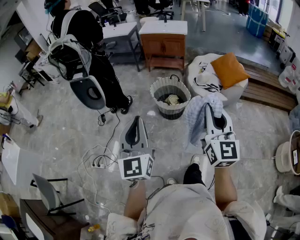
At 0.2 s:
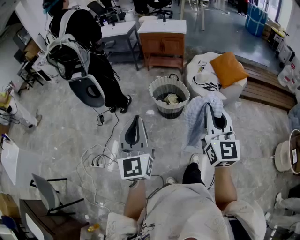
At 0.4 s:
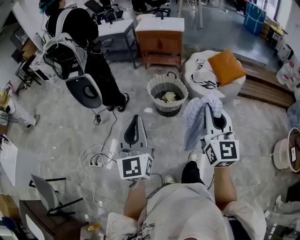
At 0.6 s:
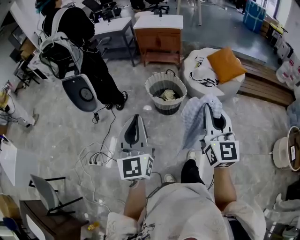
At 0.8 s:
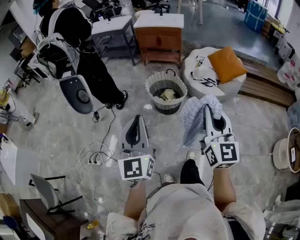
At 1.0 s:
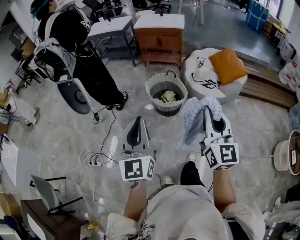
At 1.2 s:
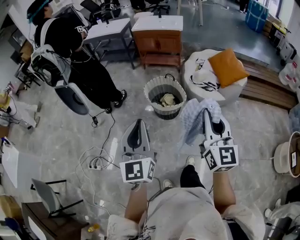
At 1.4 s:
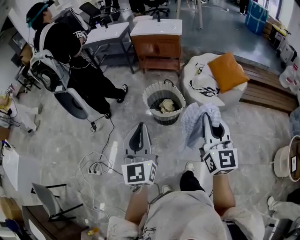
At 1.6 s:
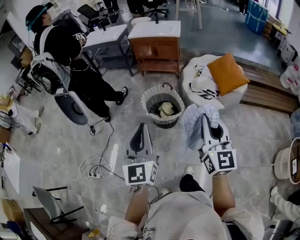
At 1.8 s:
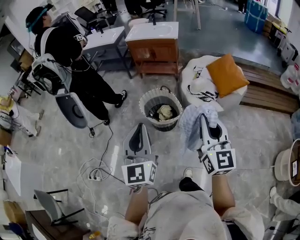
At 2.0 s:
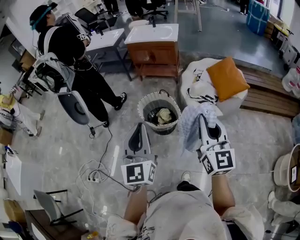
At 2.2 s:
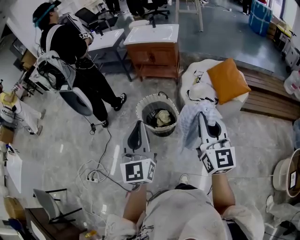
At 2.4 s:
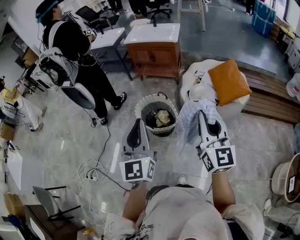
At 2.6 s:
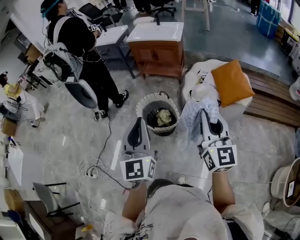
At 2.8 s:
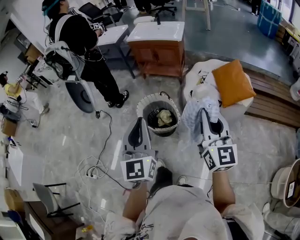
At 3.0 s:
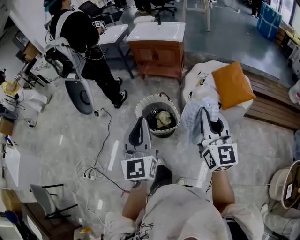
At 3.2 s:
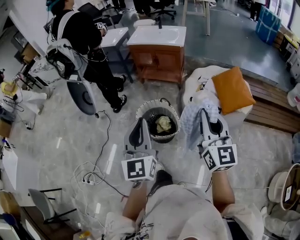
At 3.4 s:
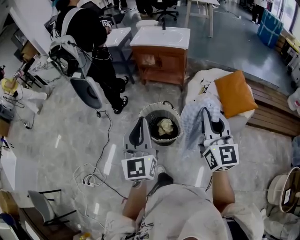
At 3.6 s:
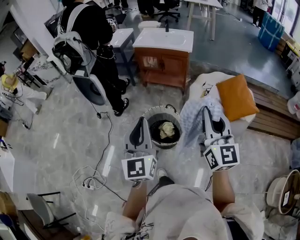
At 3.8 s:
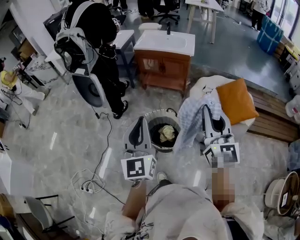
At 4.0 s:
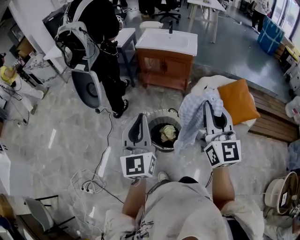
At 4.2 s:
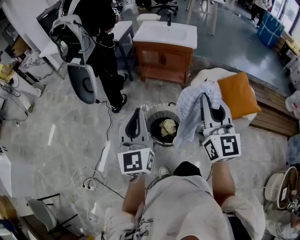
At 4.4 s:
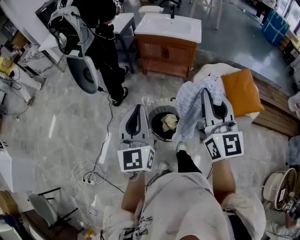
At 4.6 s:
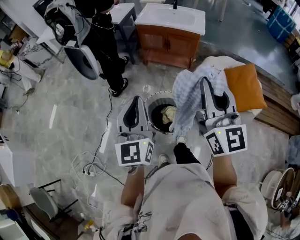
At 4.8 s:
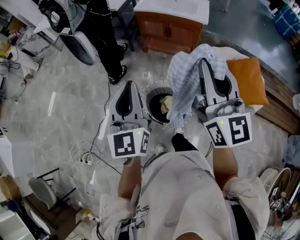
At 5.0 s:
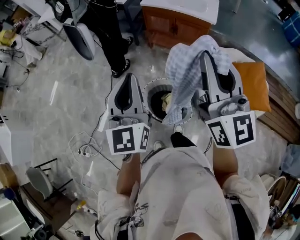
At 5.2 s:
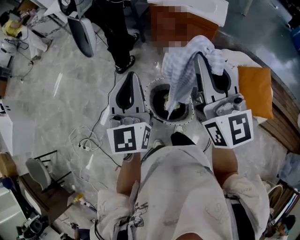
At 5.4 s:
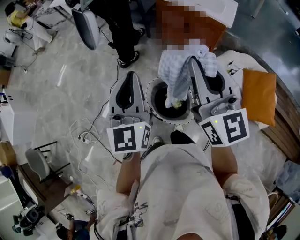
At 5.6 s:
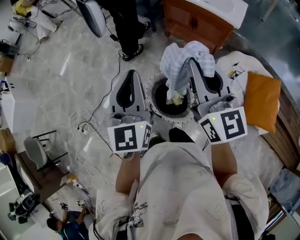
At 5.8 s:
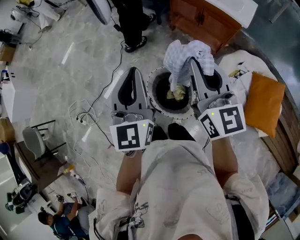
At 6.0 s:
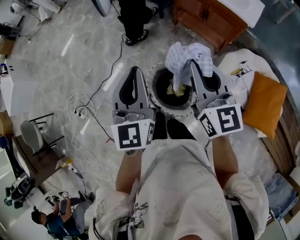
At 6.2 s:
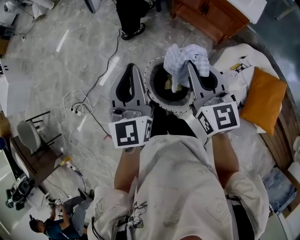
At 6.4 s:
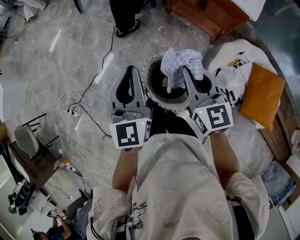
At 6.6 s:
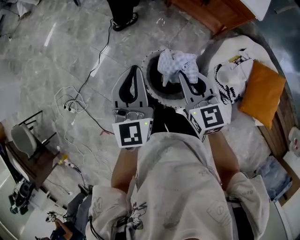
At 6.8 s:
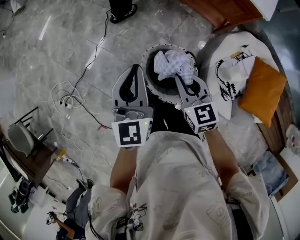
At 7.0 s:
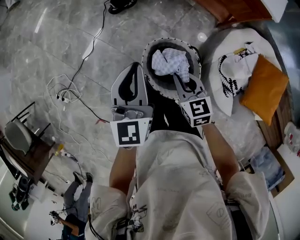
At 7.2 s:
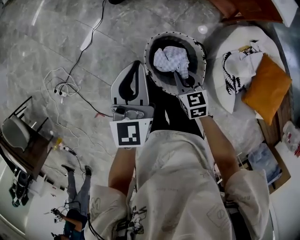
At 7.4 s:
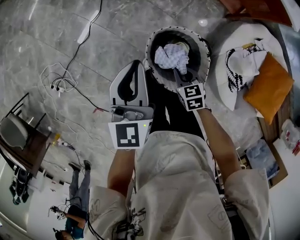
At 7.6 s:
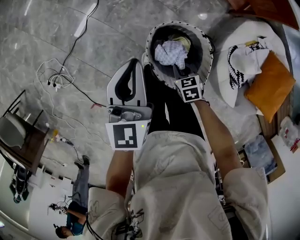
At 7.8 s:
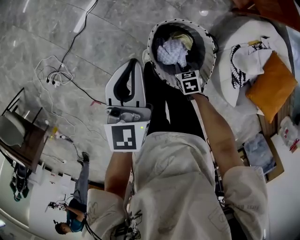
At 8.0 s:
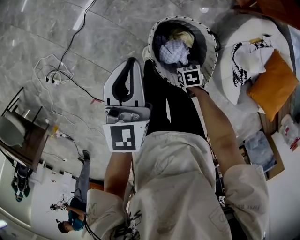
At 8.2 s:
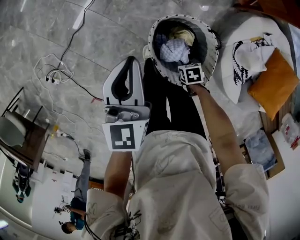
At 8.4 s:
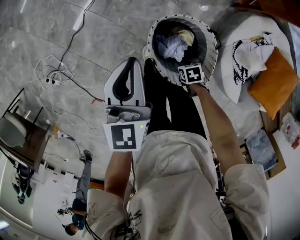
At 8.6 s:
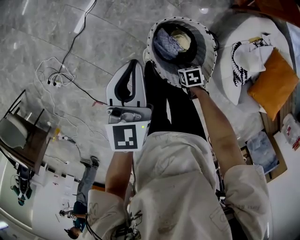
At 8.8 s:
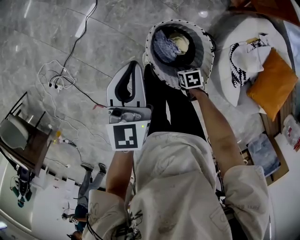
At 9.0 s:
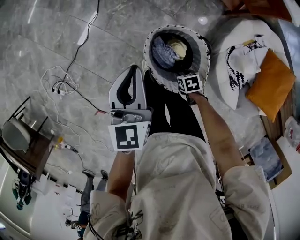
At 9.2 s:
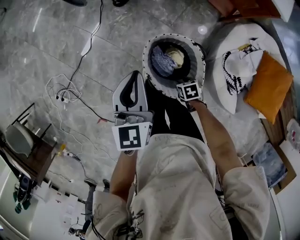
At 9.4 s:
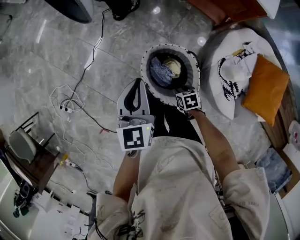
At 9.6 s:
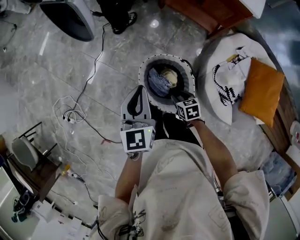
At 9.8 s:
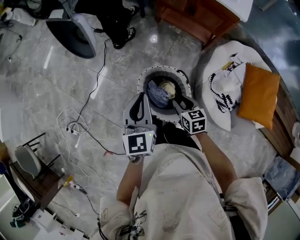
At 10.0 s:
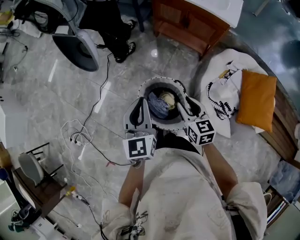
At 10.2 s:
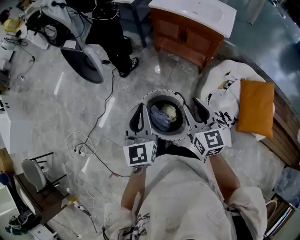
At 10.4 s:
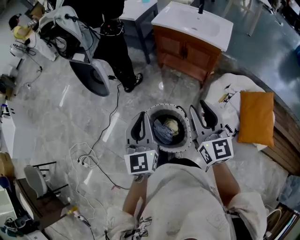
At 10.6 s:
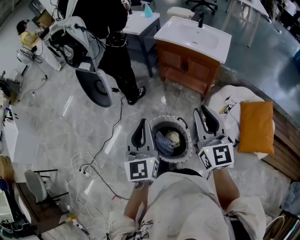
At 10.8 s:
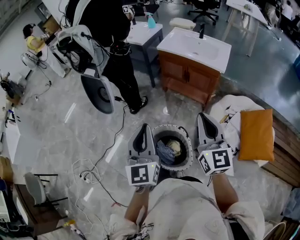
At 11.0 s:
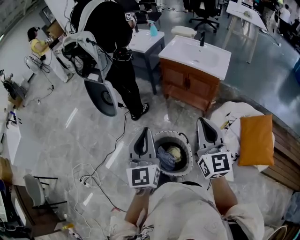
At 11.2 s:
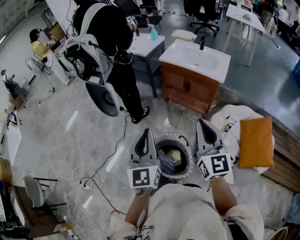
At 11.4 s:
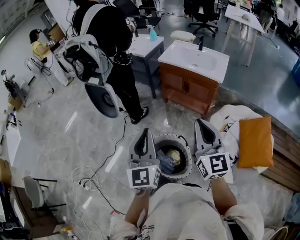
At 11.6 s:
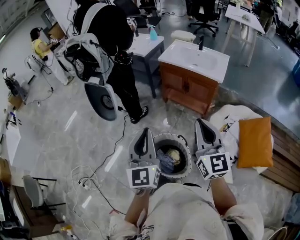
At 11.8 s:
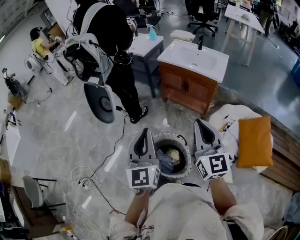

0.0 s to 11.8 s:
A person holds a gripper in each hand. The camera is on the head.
0.0 to 1.4 s: The grippers both shift forward and to the right by about 15 cm.
1.4 to 3.0 s: Both grippers travel together forward and to the right, roughly 25 cm.
3.0 to 4.4 s: Both grippers travel together forward and to the left, some 30 cm.
4.4 to 6.0 s: The right gripper moves approximately 25 cm, and turns by about 40 degrees, while the left gripper changes place by roughly 15 cm, and swivels some 20 degrees.
6.0 to 7.4 s: The right gripper moves downward, about 50 cm, and points its fingers roughly 50 degrees further downward. The left gripper is displaced downward and forward by roughly 25 cm, and rotates roughly 20 degrees.
7.4 to 8.8 s: The right gripper is displaced downward by approximately 15 cm, turns by about 30 degrees, and opens up.
8.8 to 10.4 s: The left gripper shifts some 25 cm upward, and rotates roughly 20 degrees. Meanwhile the right gripper moves upward, some 60 cm, and angles its fingers upward, by about 70 degrees.
10.4 to 11.8 s: The grippers both shift upward by some 10 cm. The right gripper closes its fingers.

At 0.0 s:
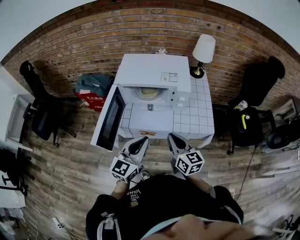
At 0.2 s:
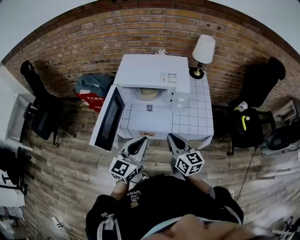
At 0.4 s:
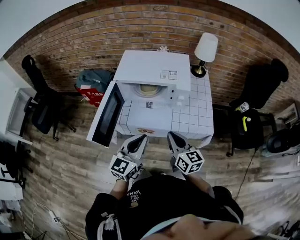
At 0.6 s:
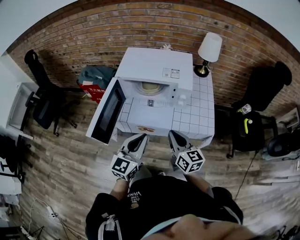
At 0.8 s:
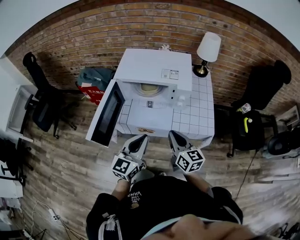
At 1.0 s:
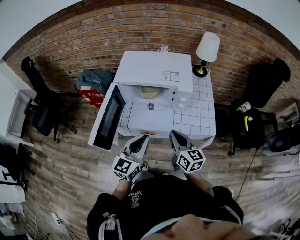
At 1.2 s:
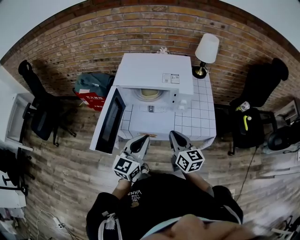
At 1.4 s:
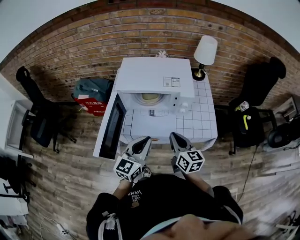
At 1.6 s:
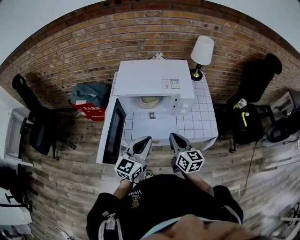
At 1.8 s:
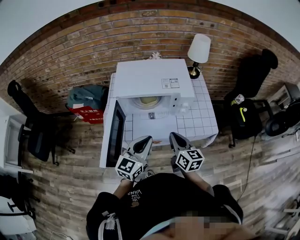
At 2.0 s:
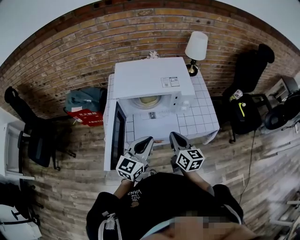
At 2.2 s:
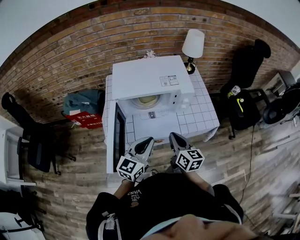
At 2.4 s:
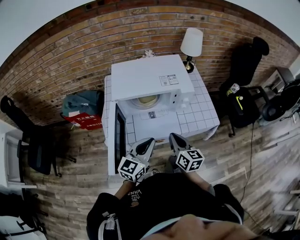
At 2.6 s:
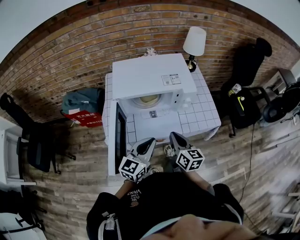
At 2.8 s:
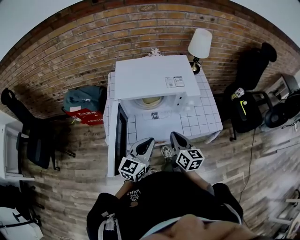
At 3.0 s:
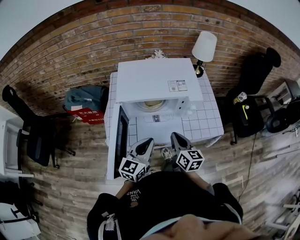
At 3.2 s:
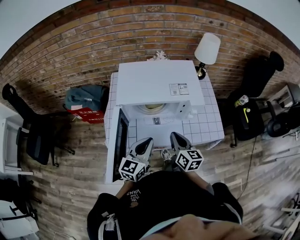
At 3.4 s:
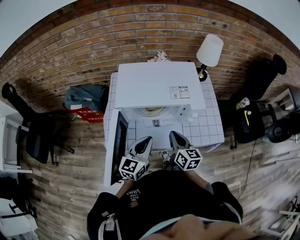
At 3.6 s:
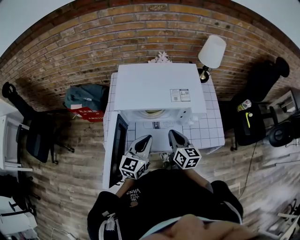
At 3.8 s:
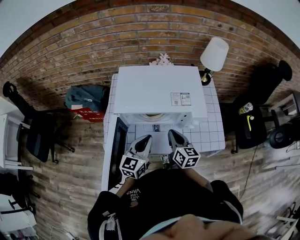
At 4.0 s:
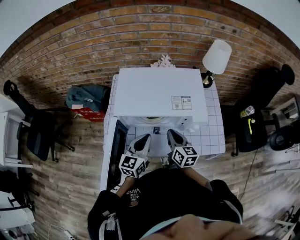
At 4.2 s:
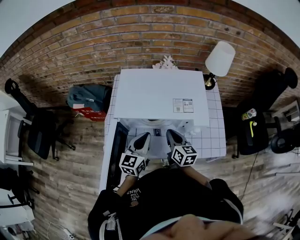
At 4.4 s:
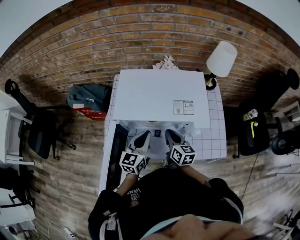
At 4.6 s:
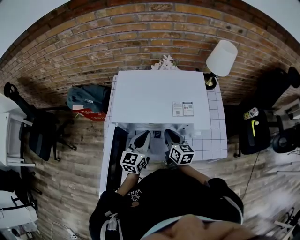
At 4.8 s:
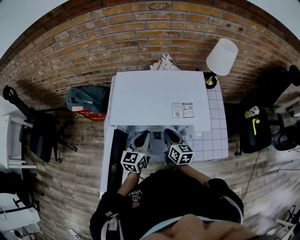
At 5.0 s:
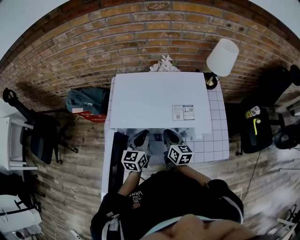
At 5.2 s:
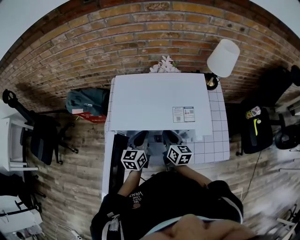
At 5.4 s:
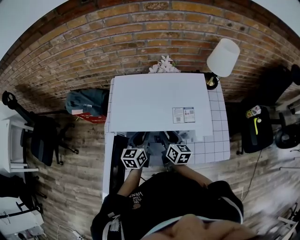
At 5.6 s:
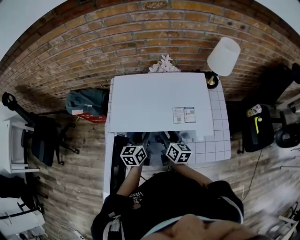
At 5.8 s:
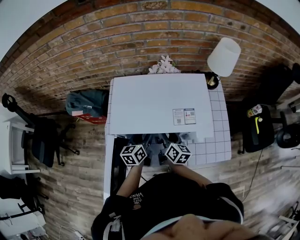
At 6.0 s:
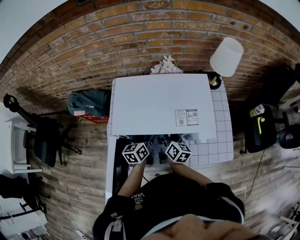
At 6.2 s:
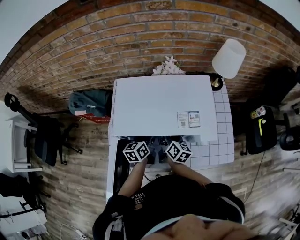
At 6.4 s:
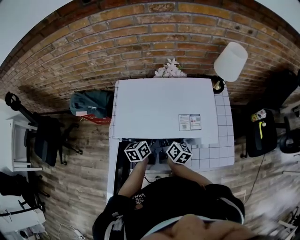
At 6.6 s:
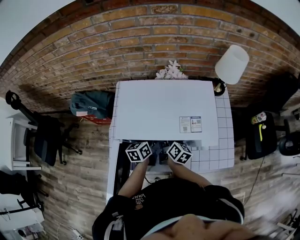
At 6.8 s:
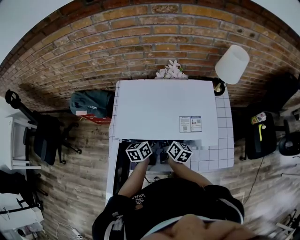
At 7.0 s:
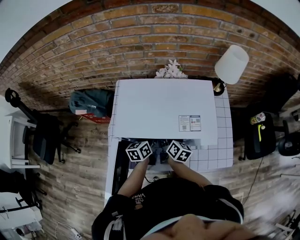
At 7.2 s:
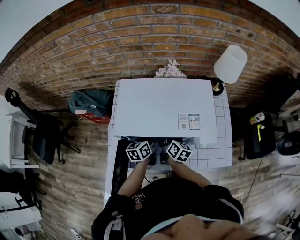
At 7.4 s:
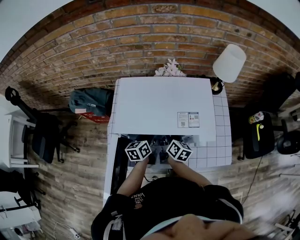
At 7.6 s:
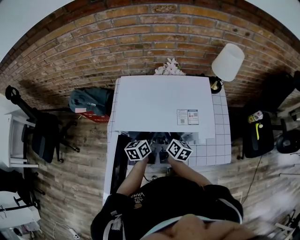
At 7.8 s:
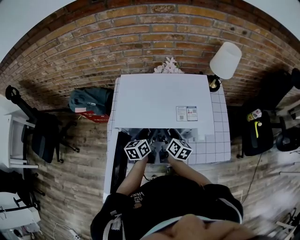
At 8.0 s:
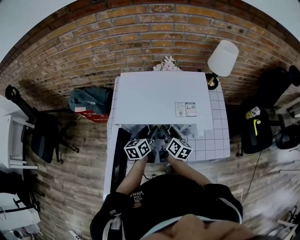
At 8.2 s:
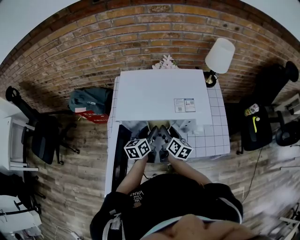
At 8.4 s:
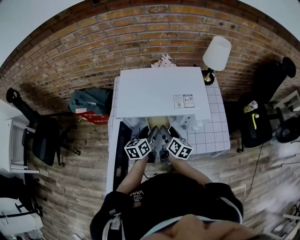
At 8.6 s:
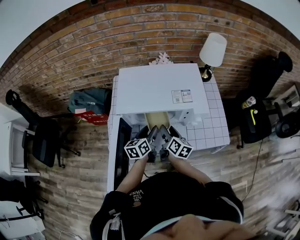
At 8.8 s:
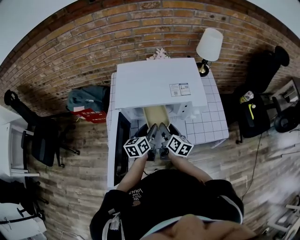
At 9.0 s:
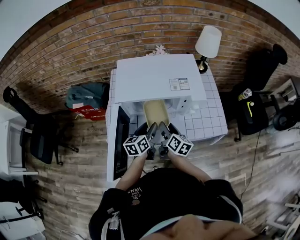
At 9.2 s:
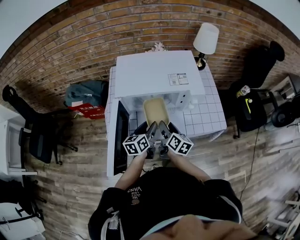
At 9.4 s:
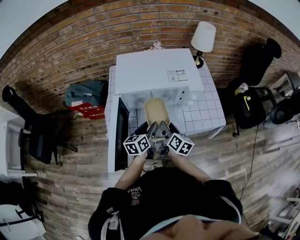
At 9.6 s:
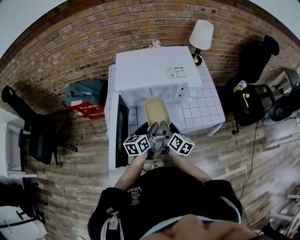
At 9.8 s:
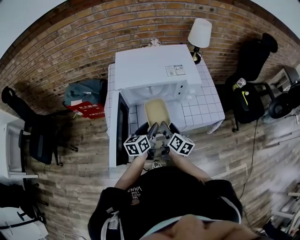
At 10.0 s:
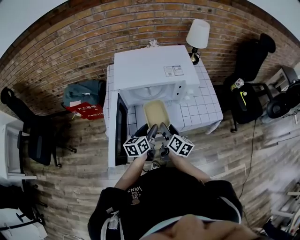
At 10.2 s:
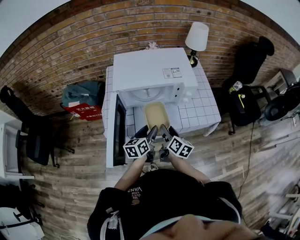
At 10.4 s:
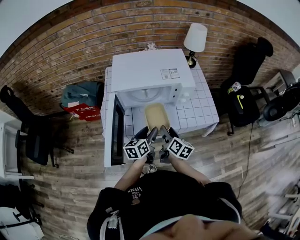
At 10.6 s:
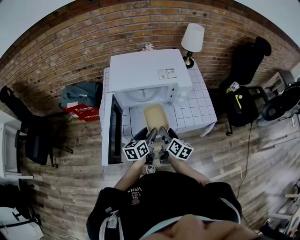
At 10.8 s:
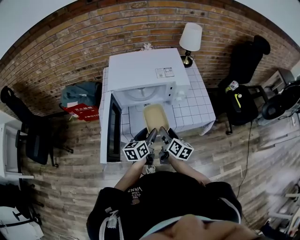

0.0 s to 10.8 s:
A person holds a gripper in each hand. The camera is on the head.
0.0 to 1.6 s: The grippers both shift forward by approximately 5 cm.
1.6 to 3.0 s: The right gripper moves some 5 cm. The left gripper shifts roughly 5 cm to the left.
3.0 to 4.6 s: The left gripper heads forward, covering about 15 cm. The right gripper heads forward and downward, covering some 15 cm.
4.6 to 6.2 s: The left gripper heads forward and downward, covering about 10 cm, changes its angle by roughly 30 degrees, and opens. The right gripper goes some 5 cm forward, swivels some 20 degrees, and opens.
6.2 to 7.8 s: The grippers stay close to where they were, moving slightly.
7.8 to 9.2 s: Both grippers move backward, approximately 15 cm.
9.2 to 10.8 s: The two grippers go about 10 cm backward and to the right.

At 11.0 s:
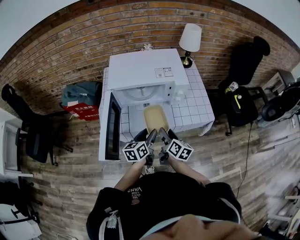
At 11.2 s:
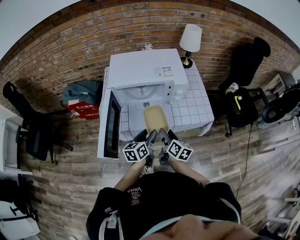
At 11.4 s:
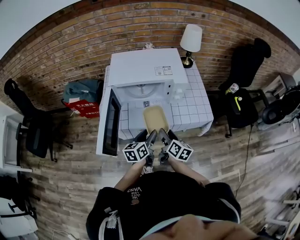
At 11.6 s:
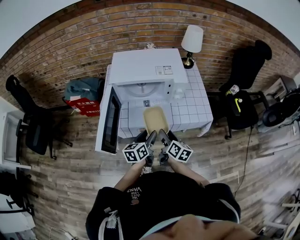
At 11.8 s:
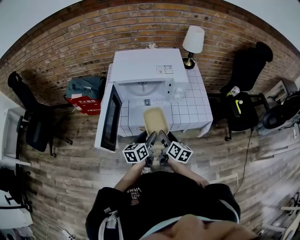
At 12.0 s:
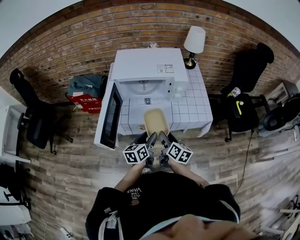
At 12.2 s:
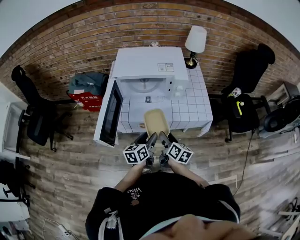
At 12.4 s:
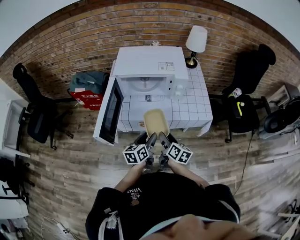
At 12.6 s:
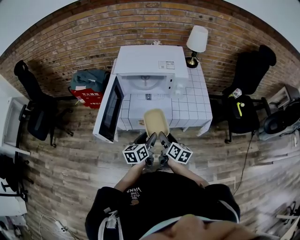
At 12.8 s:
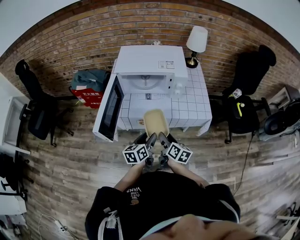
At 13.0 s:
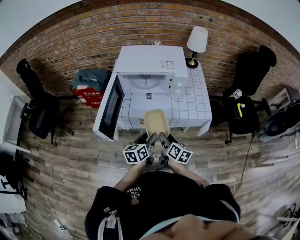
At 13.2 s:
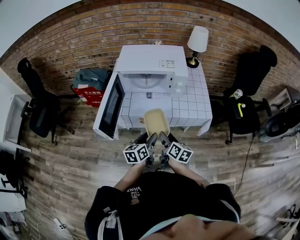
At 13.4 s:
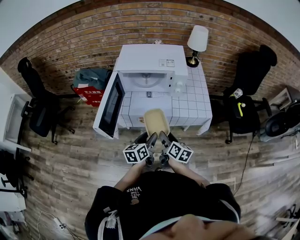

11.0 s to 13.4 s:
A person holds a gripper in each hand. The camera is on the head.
11.0 to 12.2 s: The grippers both shift backward by roughly 5 cm.
12.2 to 13.4 s: The grippers stay close to where they were, moving slightly.
